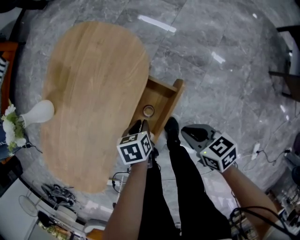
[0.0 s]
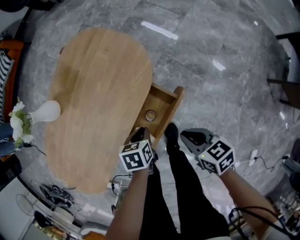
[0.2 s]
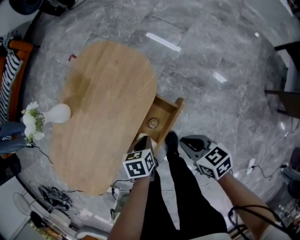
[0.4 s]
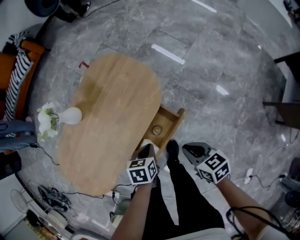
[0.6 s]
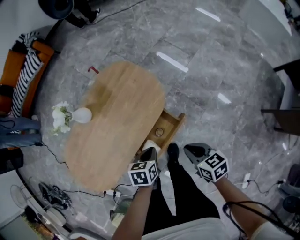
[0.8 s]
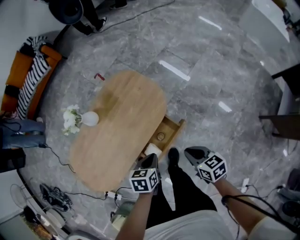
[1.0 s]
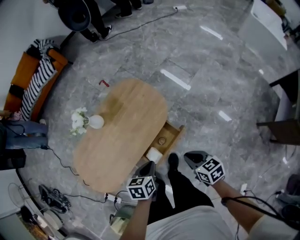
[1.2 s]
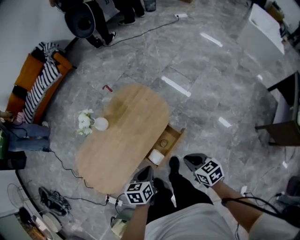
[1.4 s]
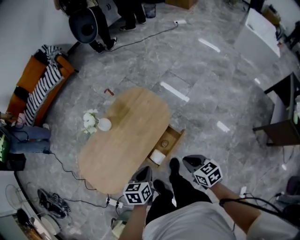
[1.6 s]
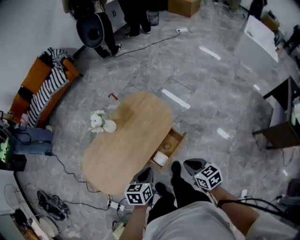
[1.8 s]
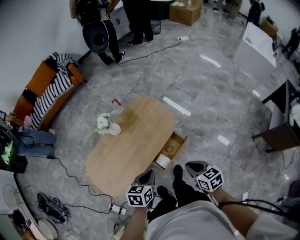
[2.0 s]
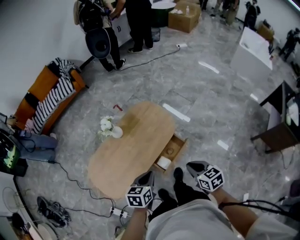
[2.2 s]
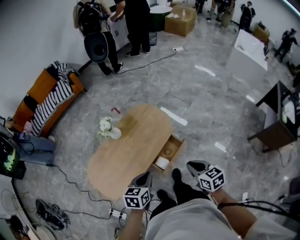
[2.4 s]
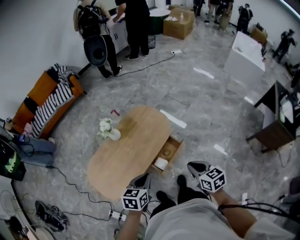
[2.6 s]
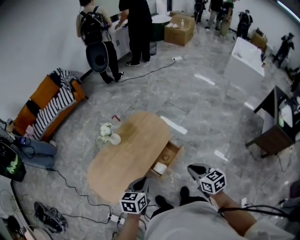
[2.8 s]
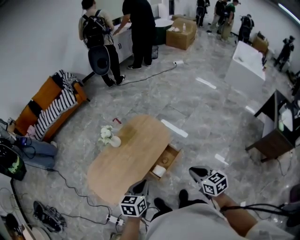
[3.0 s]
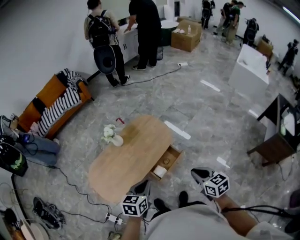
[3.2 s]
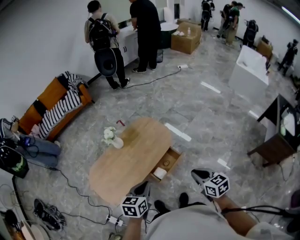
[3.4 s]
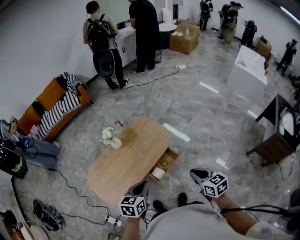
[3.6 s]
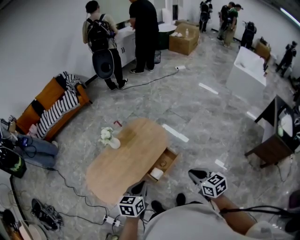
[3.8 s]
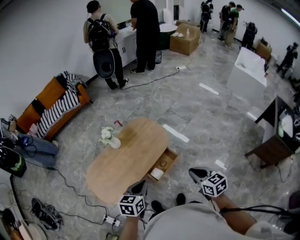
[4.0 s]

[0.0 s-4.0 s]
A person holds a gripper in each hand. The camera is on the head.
0.0 to 1.4 s: Both grippers move upward, some 30 cm. The left gripper swivels some 20 degrees.
1.4 to 2.6 s: The left gripper goes roughly 20 cm upward, backward and to the left. Meanwhile the right gripper goes approximately 20 cm upward and backward.
2.6 to 4.0 s: The left gripper changes place by about 5 cm, while the right gripper shifts roughly 5 cm to the right.

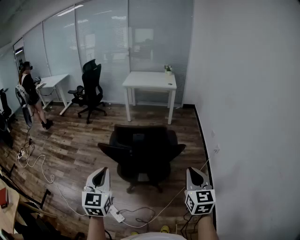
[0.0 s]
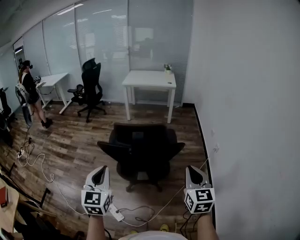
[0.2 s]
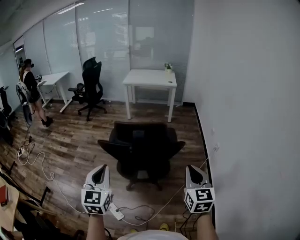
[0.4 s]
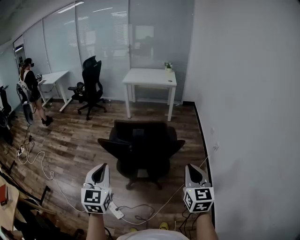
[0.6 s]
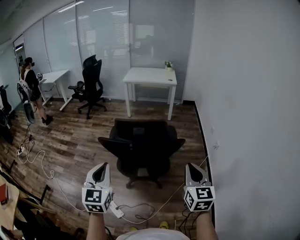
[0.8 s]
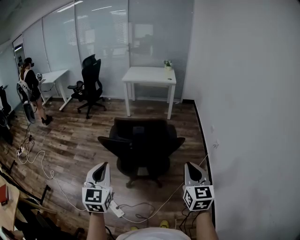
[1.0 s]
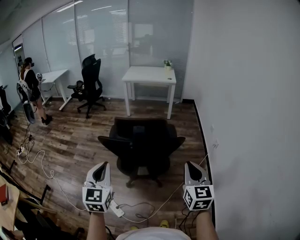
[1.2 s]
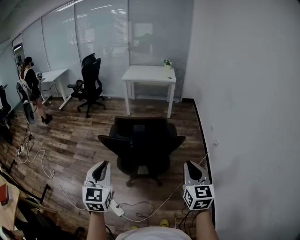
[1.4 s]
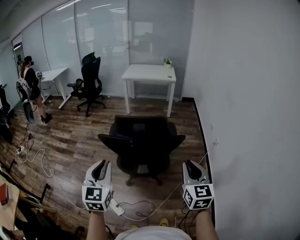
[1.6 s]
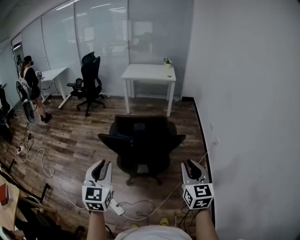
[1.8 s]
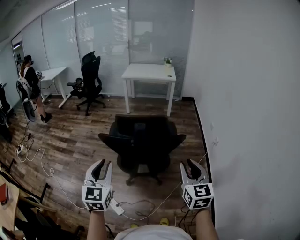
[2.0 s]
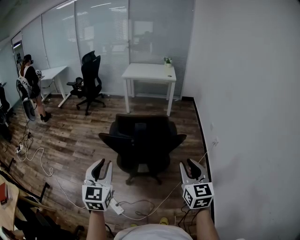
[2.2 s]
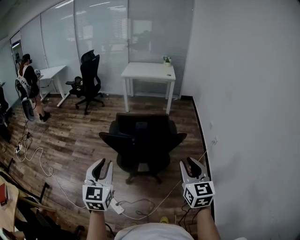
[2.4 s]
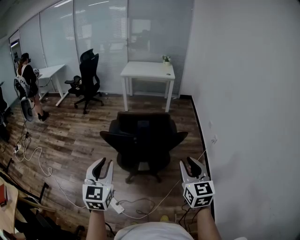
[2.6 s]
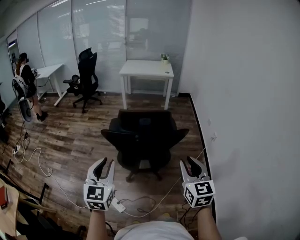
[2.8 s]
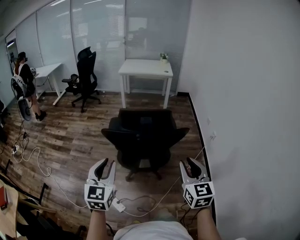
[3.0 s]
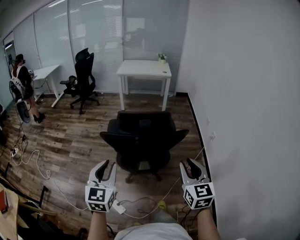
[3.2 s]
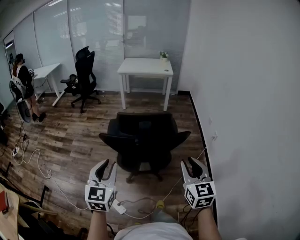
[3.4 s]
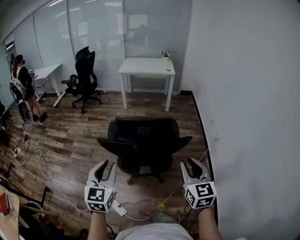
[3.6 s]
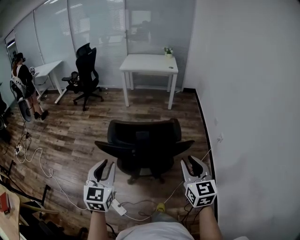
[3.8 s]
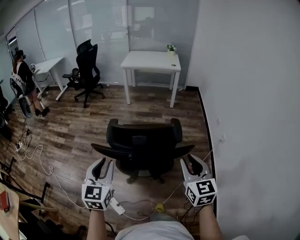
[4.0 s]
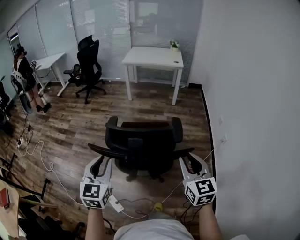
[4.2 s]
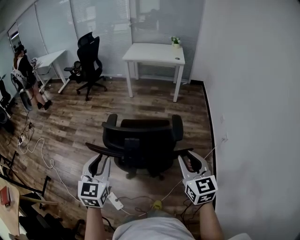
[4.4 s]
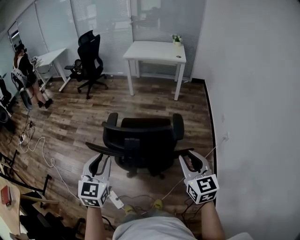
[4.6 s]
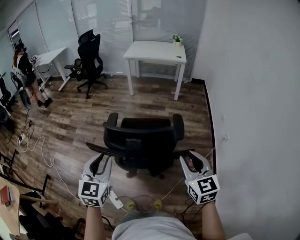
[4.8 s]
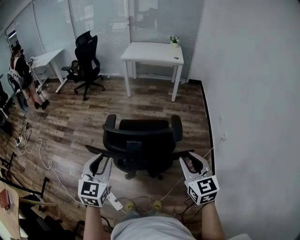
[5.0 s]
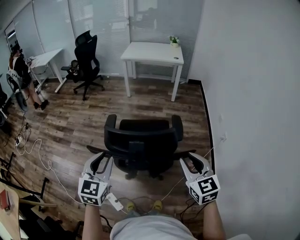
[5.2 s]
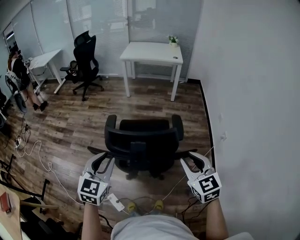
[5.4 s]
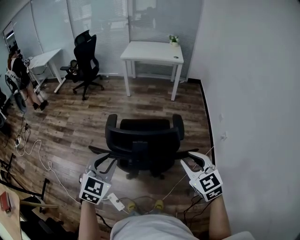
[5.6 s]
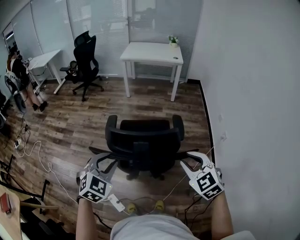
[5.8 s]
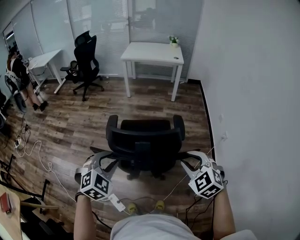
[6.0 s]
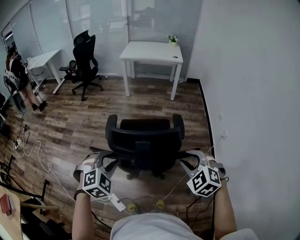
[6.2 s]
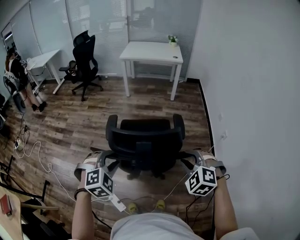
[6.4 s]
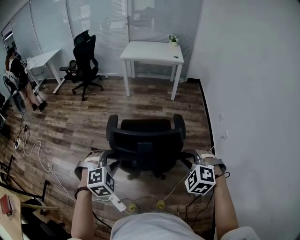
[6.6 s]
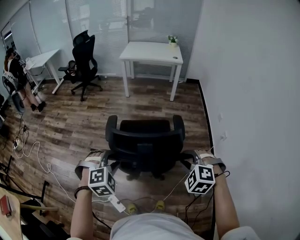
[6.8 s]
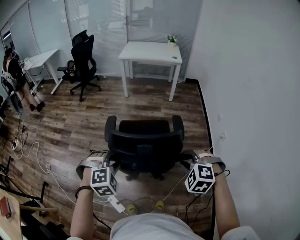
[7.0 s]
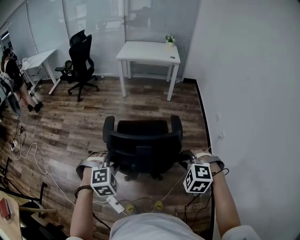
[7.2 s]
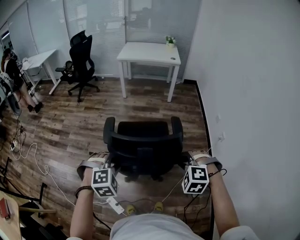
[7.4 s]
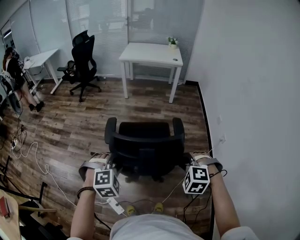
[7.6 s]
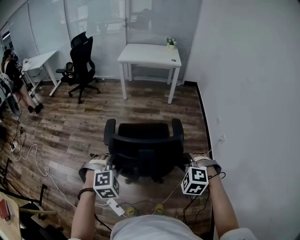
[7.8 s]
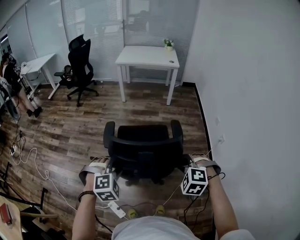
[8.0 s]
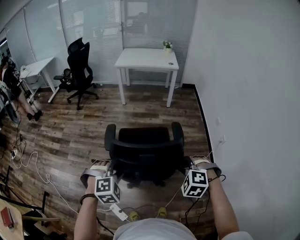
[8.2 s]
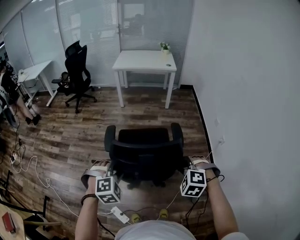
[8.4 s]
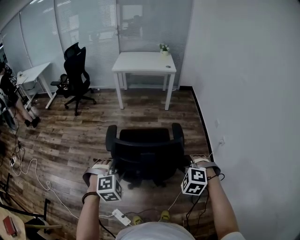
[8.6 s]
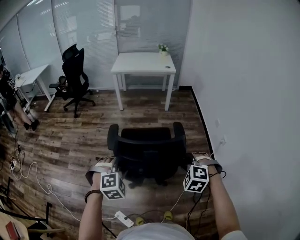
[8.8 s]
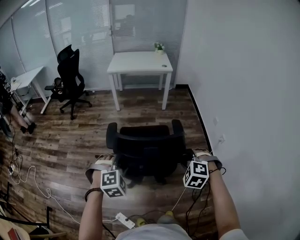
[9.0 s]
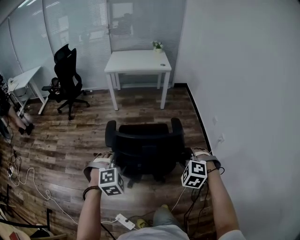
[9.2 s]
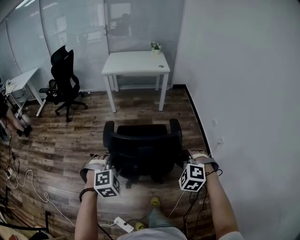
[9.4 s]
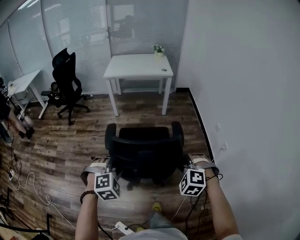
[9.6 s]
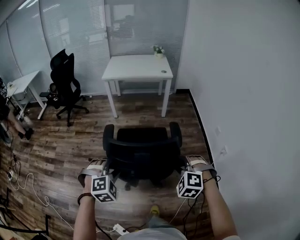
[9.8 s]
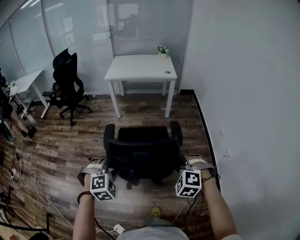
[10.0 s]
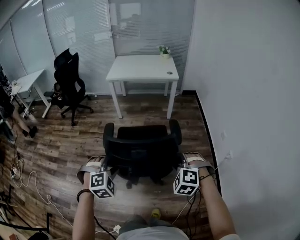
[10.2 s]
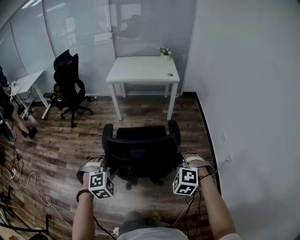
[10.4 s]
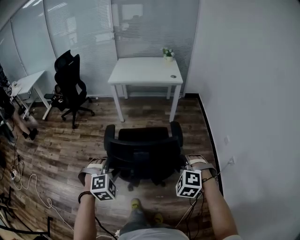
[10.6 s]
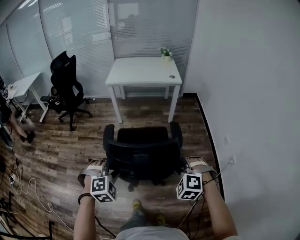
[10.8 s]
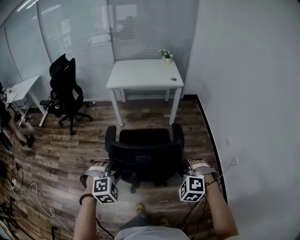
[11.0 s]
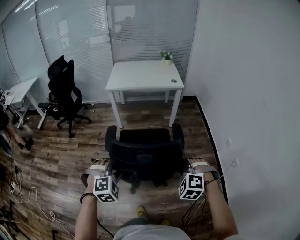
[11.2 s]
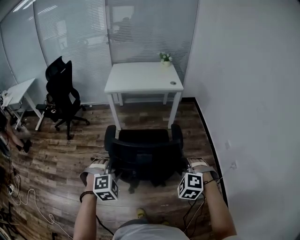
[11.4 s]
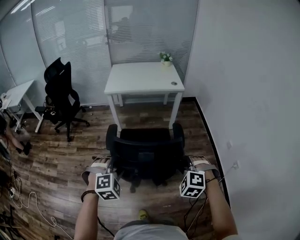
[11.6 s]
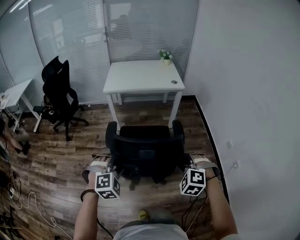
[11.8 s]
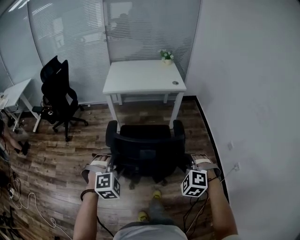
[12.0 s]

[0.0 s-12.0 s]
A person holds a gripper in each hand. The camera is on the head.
0.0 to 1.6 s: The grippers move only a little.
1.6 to 3.0 s: The right gripper moves to the left, approximately 5 cm.
3.0 to 4.4 s: Both grippers move forward, approximately 20 cm.
4.4 to 6.0 s: The right gripper changes place by approximately 5 cm, and swivels about 40 degrees; the left gripper shifts by roughly 5 cm, and turns by some 50 degrees.
6.0 to 7.6 s: Both grippers move downward, roughly 5 cm. The left gripper turns by roughly 20 degrees. The right gripper swivels about 30 degrees.
7.6 to 9.0 s: Both grippers travel together forward, some 10 cm.
9.0 to 10.4 s: Both grippers travel together forward, about 25 cm.
10.4 to 12.0 s: Both grippers travel together forward and to the left, about 25 cm.

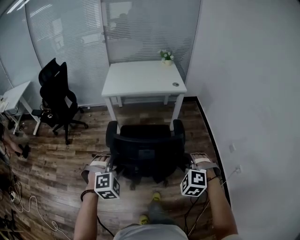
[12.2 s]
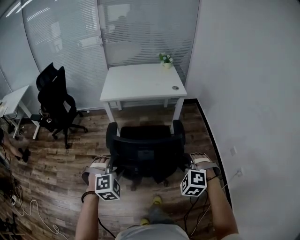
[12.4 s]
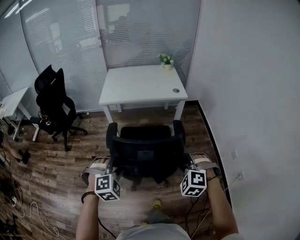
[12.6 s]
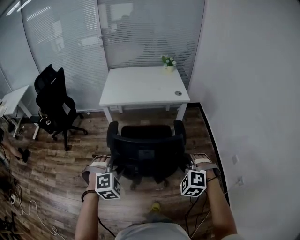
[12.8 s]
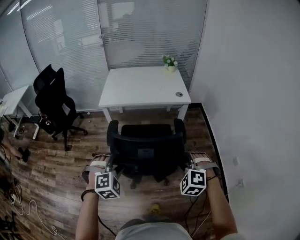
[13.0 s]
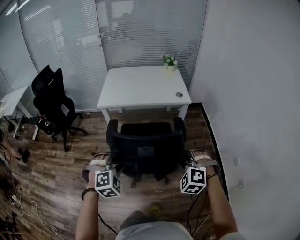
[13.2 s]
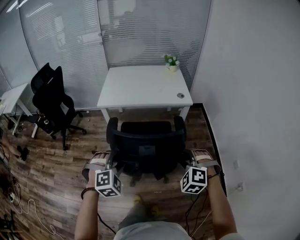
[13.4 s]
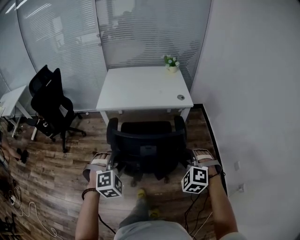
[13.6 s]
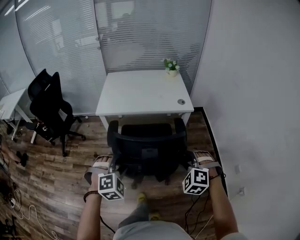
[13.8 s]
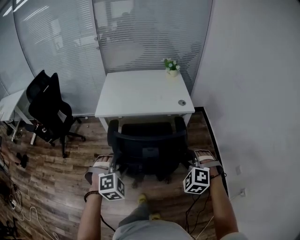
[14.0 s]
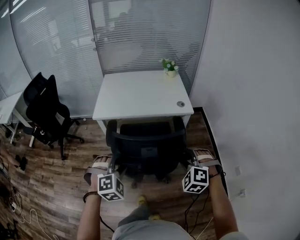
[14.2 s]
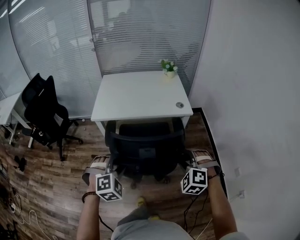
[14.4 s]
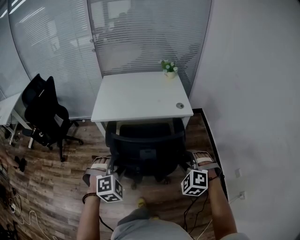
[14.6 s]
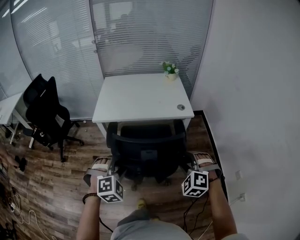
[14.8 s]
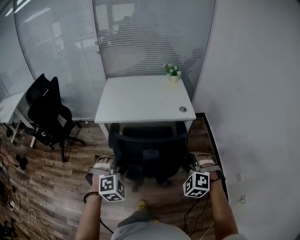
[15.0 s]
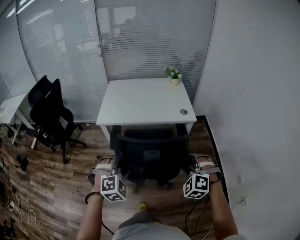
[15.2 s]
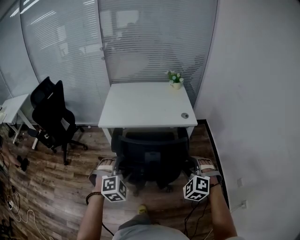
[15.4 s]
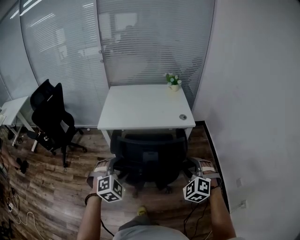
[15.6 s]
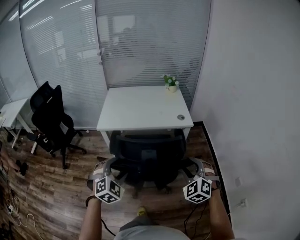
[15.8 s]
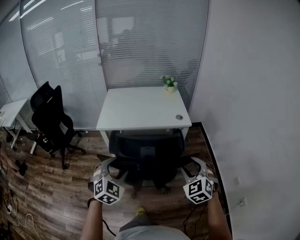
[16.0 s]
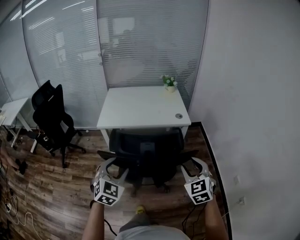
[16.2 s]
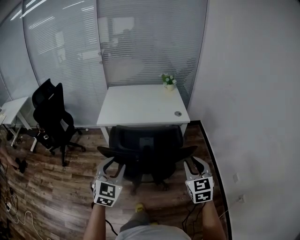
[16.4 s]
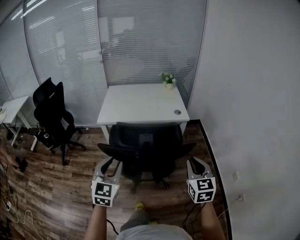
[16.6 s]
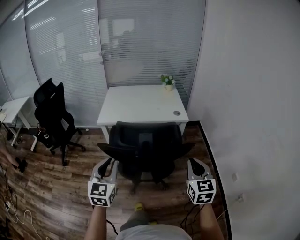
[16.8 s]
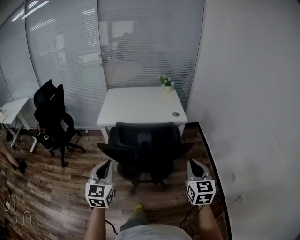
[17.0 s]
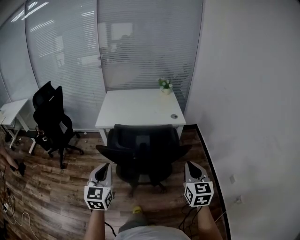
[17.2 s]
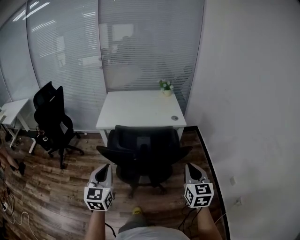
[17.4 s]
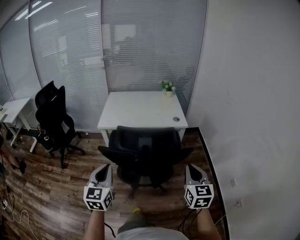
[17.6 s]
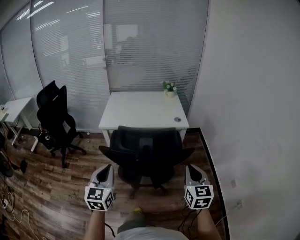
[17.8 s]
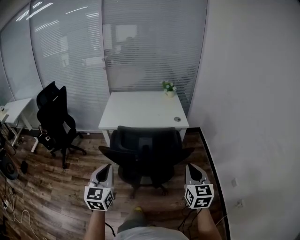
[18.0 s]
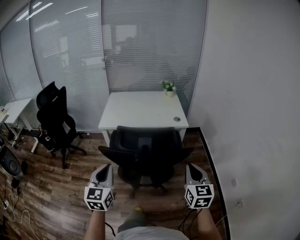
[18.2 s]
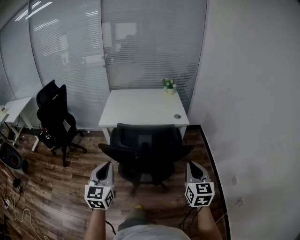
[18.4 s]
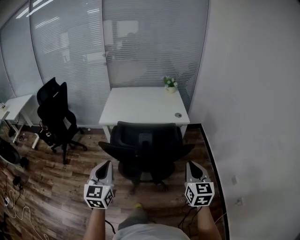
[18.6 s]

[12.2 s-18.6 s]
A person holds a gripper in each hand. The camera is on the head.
12.2 to 13.8 s: Both grippers move forward, some 30 cm.
13.8 to 15.4 s: Both grippers move forward, approximately 5 cm.
15.4 to 17.0 s: The right gripper travels backward, upward and to the right by about 15 cm, twists roughly 60 degrees clockwise, seen from behind, and closes up, while the left gripper is displaced backward and upward by some 15 cm, rolls counterclockwise, seen from behind, by some 60 degrees, and closes up.
17.0 to 18.6 s: Both grippers stay put.

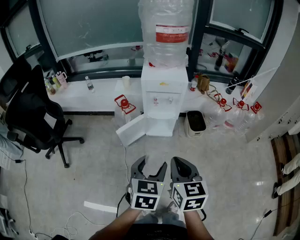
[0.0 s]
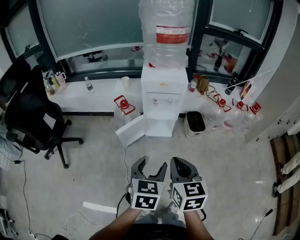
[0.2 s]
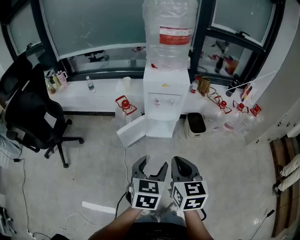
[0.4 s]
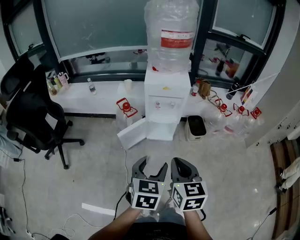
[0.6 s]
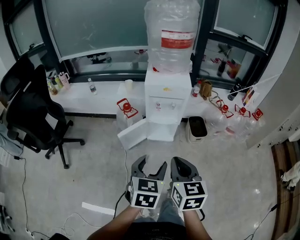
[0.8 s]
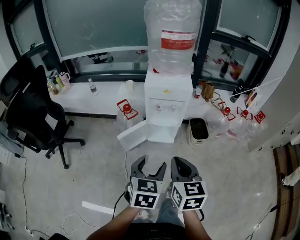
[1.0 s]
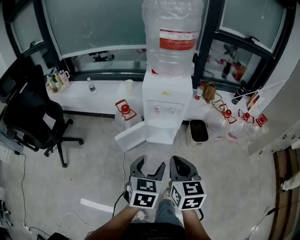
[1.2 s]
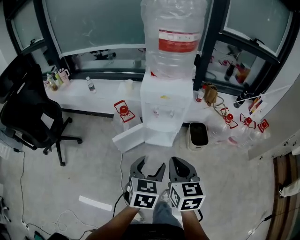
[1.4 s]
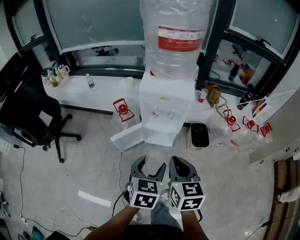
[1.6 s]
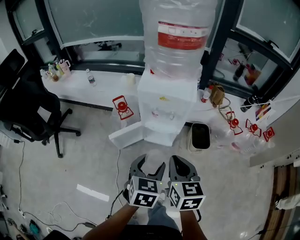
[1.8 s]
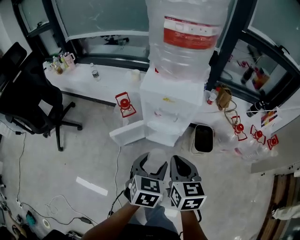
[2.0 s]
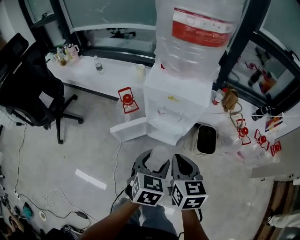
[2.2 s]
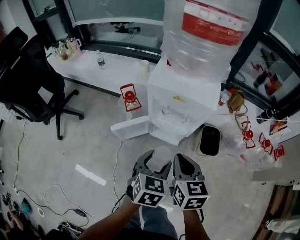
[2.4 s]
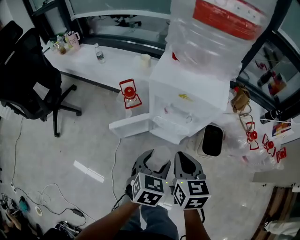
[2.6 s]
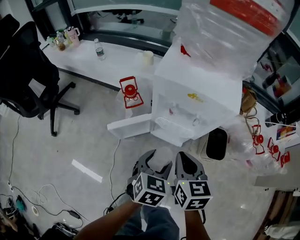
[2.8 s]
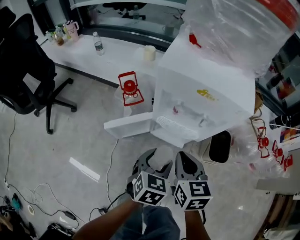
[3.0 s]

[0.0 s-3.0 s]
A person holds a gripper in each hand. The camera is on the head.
0.0 to 1.6 s: The two grippers go approximately 15 cm forward.
1.6 to 3.0 s: The grippers both shift downward and forward by about 30 cm.
